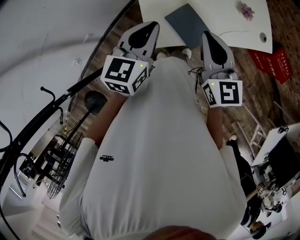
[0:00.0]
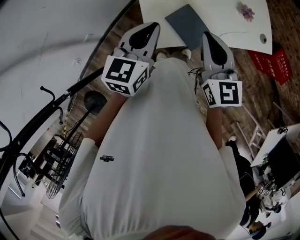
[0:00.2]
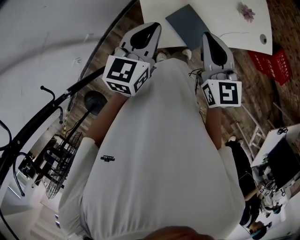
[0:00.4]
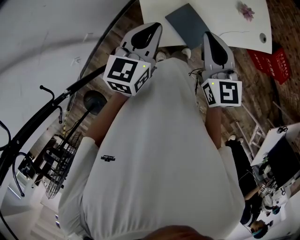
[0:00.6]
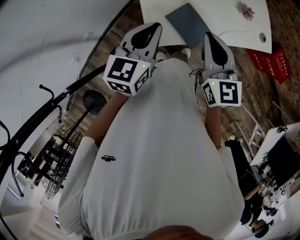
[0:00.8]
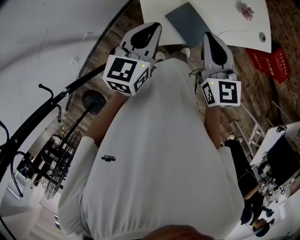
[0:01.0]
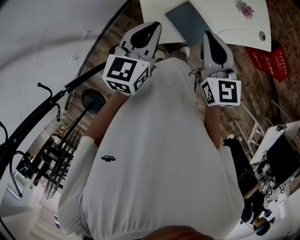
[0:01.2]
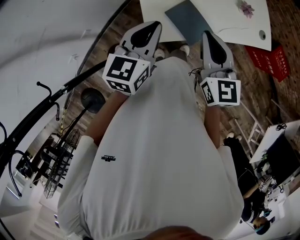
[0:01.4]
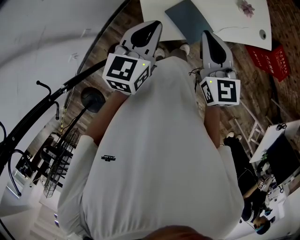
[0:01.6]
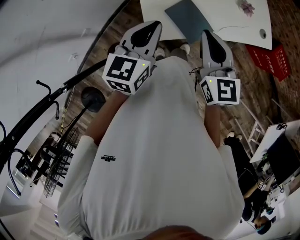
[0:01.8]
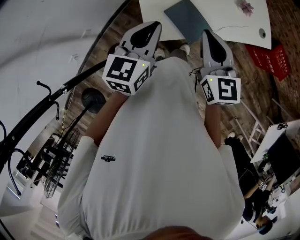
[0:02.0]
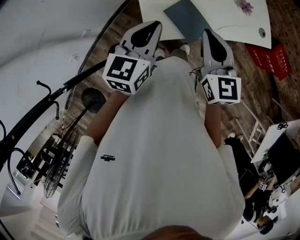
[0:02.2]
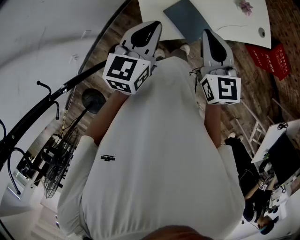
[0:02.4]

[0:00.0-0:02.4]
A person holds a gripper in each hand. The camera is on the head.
0:00.0 to 0:02.4: There are only small adjustments of the grippers.

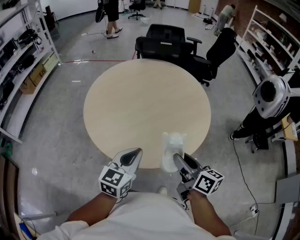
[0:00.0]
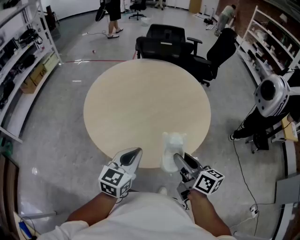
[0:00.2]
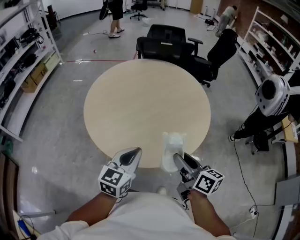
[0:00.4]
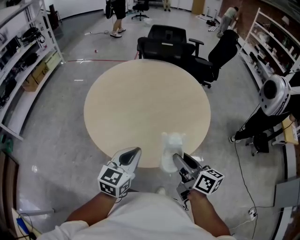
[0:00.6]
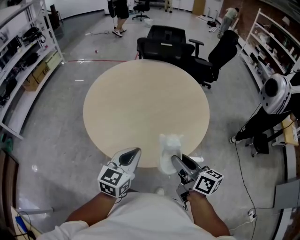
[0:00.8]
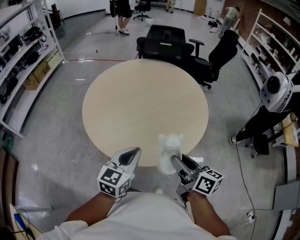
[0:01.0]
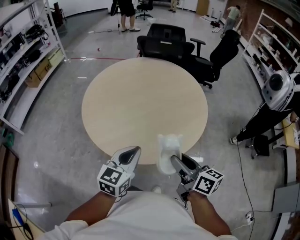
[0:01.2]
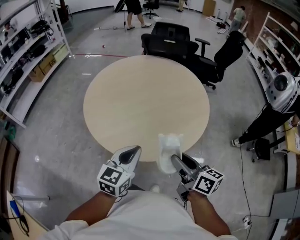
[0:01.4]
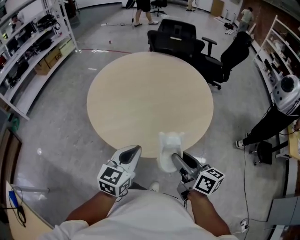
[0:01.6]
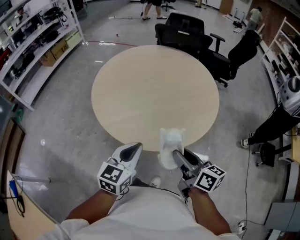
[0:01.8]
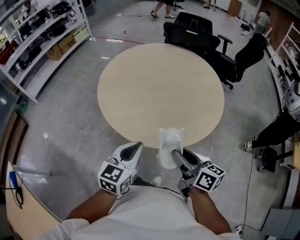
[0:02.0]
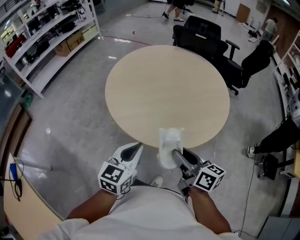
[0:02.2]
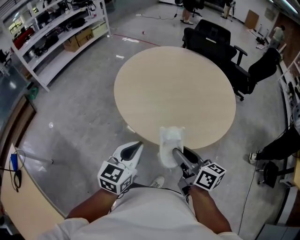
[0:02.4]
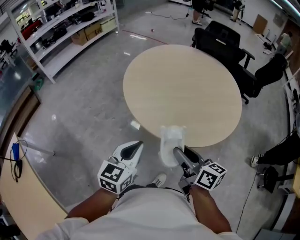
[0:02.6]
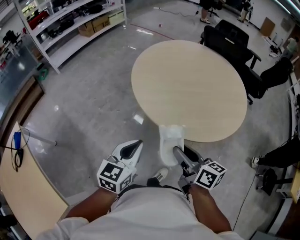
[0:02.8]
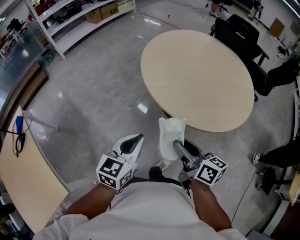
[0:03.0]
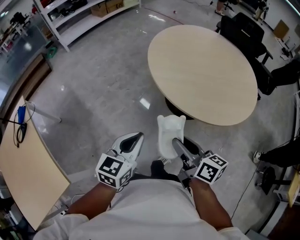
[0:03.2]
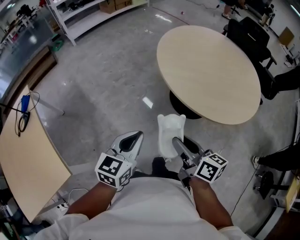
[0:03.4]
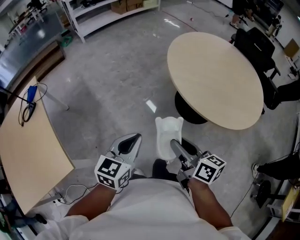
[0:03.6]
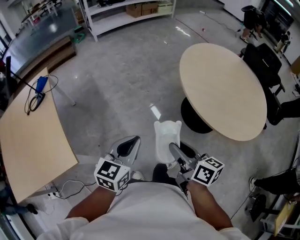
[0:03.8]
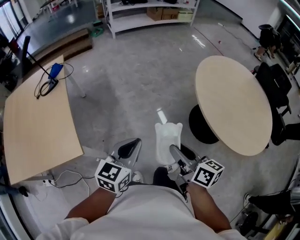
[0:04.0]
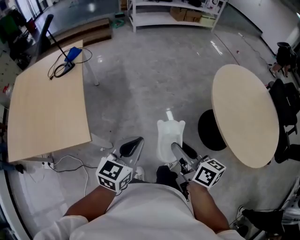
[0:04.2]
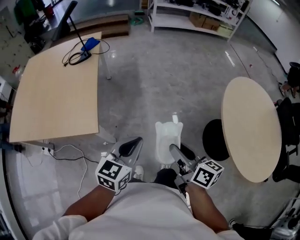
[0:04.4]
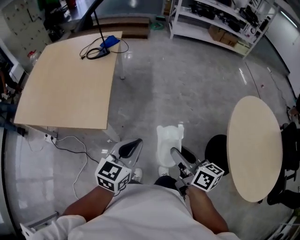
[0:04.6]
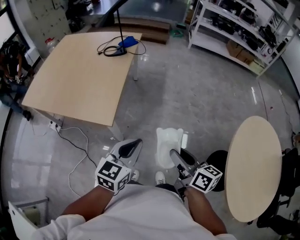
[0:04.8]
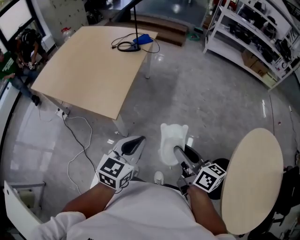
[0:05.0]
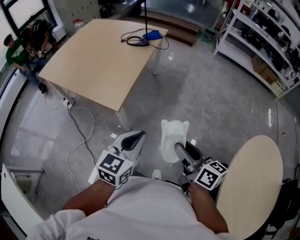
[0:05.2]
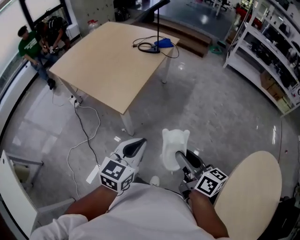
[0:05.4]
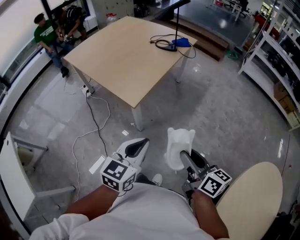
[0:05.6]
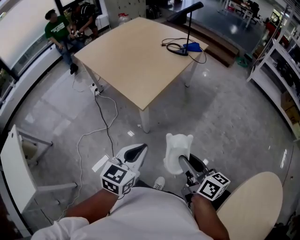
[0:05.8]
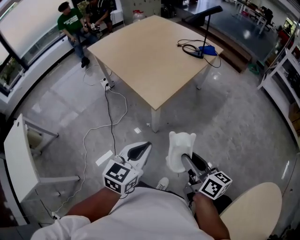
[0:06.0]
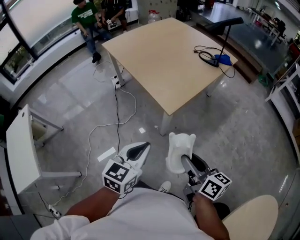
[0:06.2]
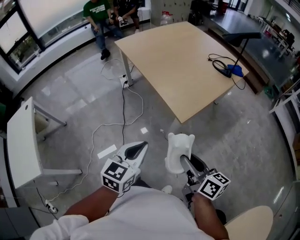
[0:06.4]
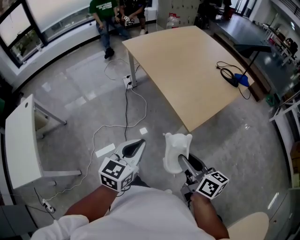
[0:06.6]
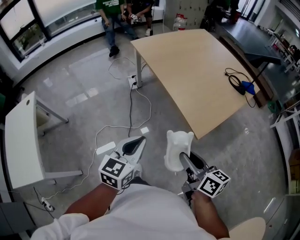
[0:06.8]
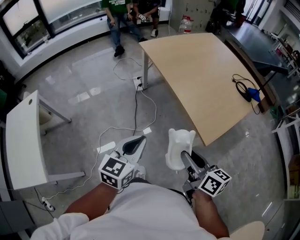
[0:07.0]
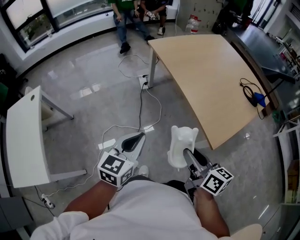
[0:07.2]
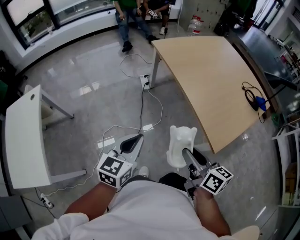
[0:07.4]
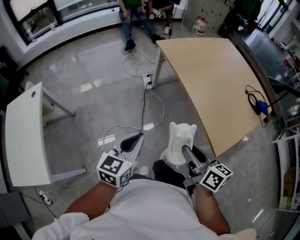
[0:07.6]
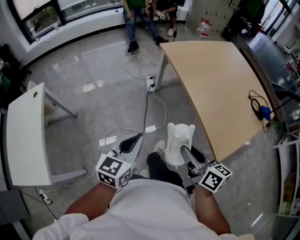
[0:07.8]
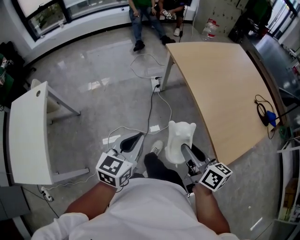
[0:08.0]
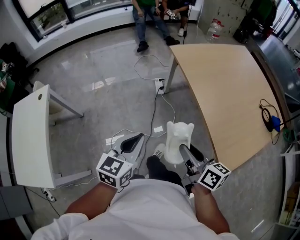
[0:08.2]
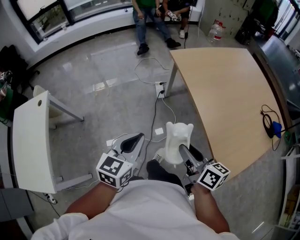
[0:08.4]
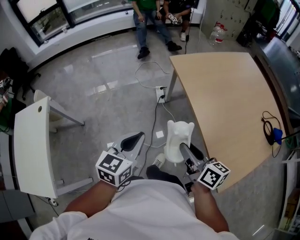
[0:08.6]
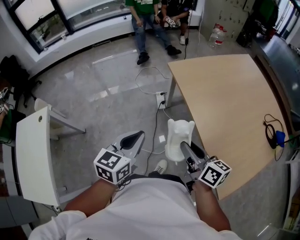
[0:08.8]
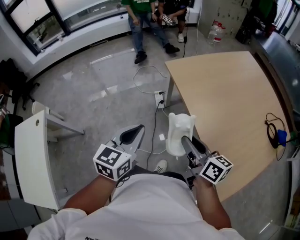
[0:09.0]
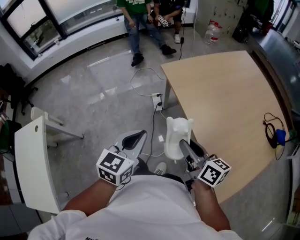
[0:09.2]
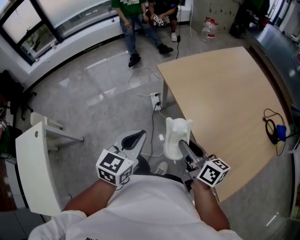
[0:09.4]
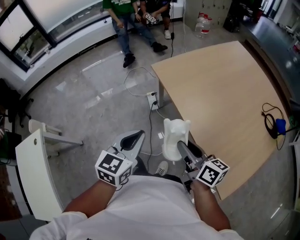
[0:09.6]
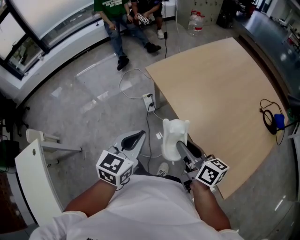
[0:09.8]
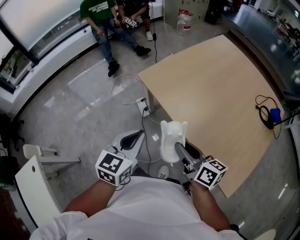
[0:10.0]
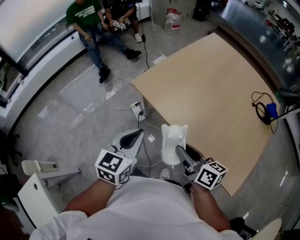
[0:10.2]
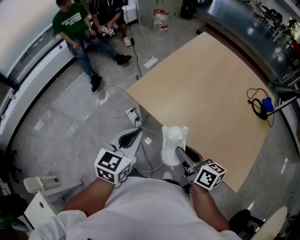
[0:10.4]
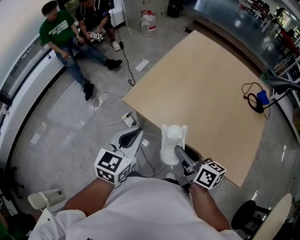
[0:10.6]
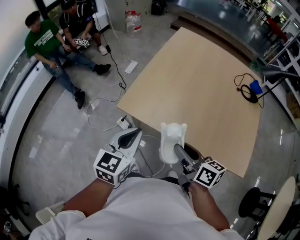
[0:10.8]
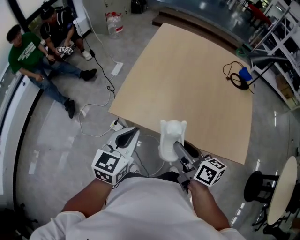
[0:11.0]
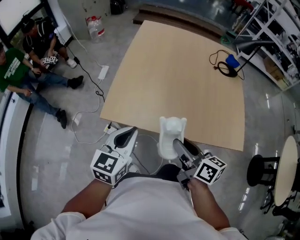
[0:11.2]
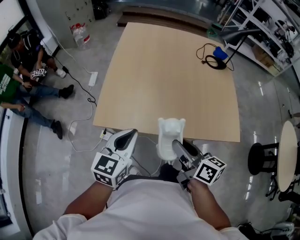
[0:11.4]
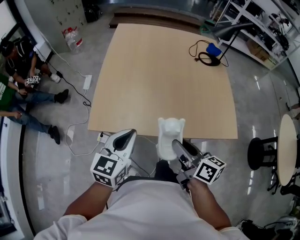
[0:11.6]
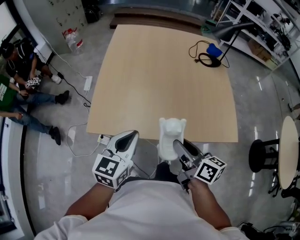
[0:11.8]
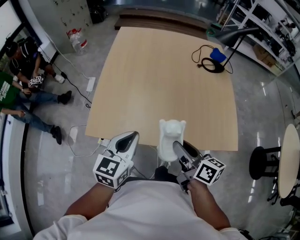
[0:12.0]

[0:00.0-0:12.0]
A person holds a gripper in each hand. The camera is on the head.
0:00.0 to 0:01.6: The grippers both shift to the right by roughly 5 cm.
0:01.6 to 0:03.0: Both grippers move to the left and backward, some 20 cm. The left gripper changes its angle by some 20 degrees. The right gripper changes its angle by about 20 degrees.
0:03.0 to 0:04.4: The left gripper shifts by about 30 cm, and swivels some 40 degrees; the right gripper ends up about 25 cm from where it was, and turns by approximately 40 degrees.
0:04.4 to 0:06.0: The left gripper shifts by approximately 10 cm, and changes its angle by about 50 degrees, while the right gripper ends up about 10 cm from where it was, and swivels approximately 50 degrees.
0:06.0 to 0:07.6: The two grippers travel together, to the left and forward, about 40 cm. The left gripper turns by about 30 degrees; the right gripper turns by some 20 degrees.
0:07.6 to 0:09.0: Both grippers move forward, approximately 25 cm.
0:09.0 to 0:10.4: The left gripper ends up some 20 cm from where it was, and rotates about 30 degrees; the right gripper ends up approximately 10 cm from where it was, and swivels approximately 30 degrees.
0:10.4 to 0:12.0: The right gripper ends up roughly 10 cm from where it was, and rotates about 40 degrees. Meanwhile the left gripper ends up approximately 15 cm from where it was, and turns by roughly 30 degrees.

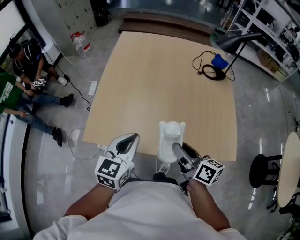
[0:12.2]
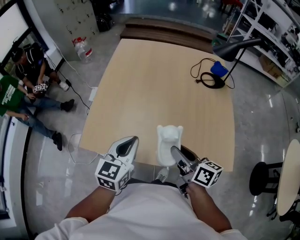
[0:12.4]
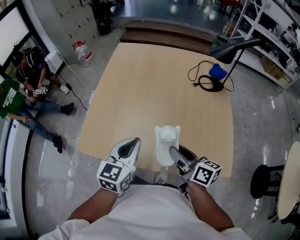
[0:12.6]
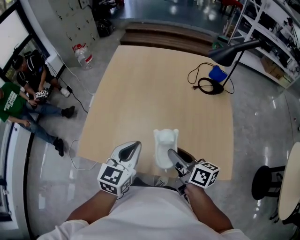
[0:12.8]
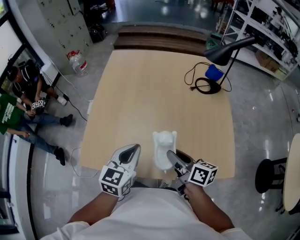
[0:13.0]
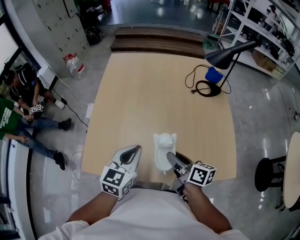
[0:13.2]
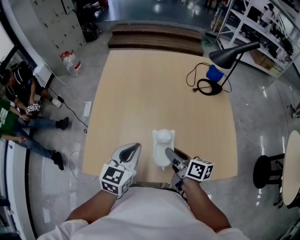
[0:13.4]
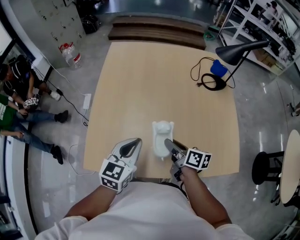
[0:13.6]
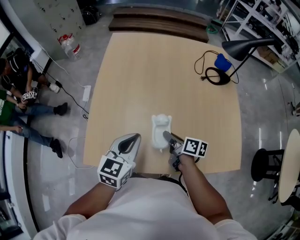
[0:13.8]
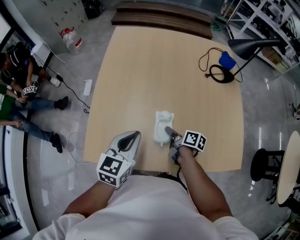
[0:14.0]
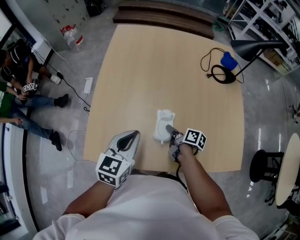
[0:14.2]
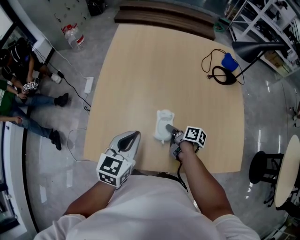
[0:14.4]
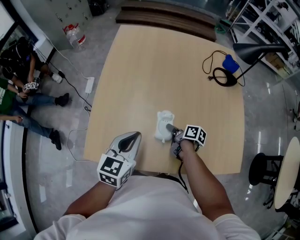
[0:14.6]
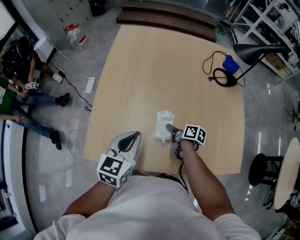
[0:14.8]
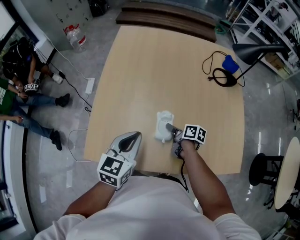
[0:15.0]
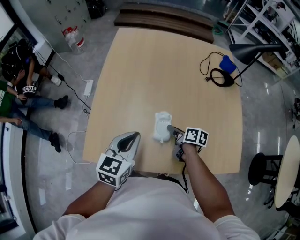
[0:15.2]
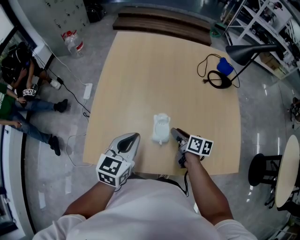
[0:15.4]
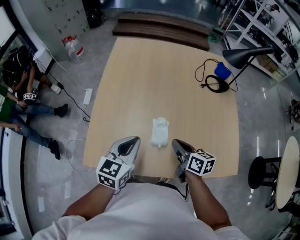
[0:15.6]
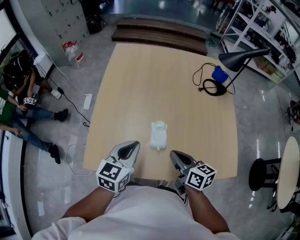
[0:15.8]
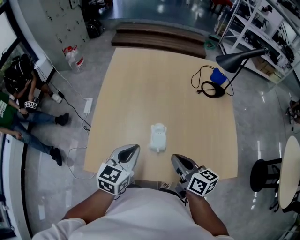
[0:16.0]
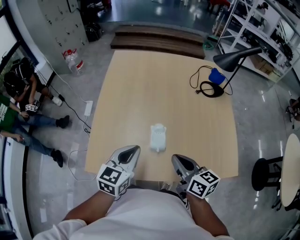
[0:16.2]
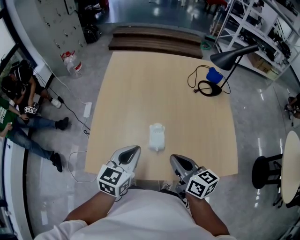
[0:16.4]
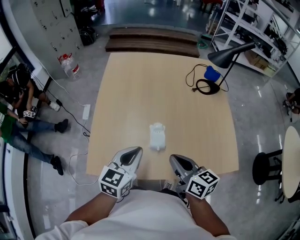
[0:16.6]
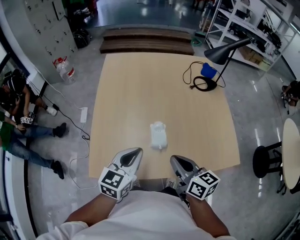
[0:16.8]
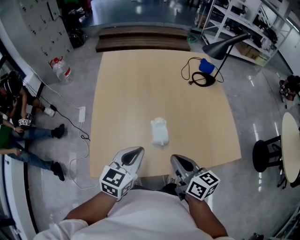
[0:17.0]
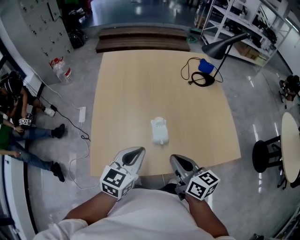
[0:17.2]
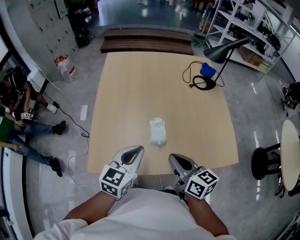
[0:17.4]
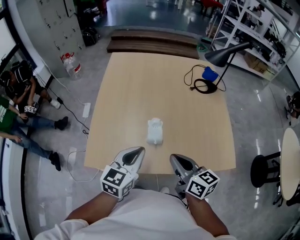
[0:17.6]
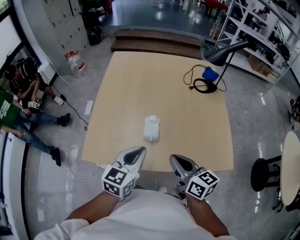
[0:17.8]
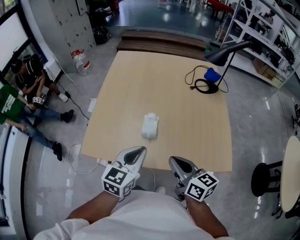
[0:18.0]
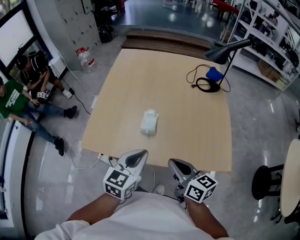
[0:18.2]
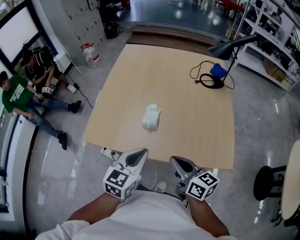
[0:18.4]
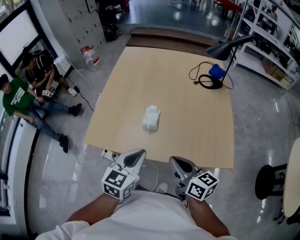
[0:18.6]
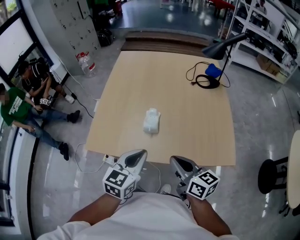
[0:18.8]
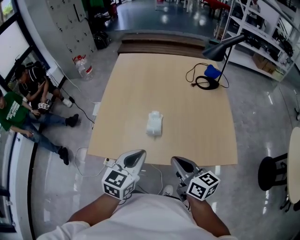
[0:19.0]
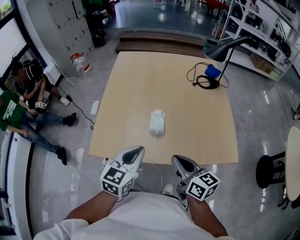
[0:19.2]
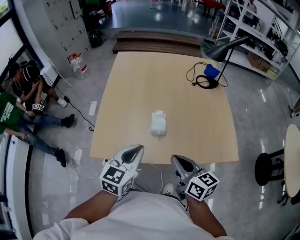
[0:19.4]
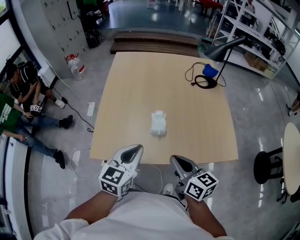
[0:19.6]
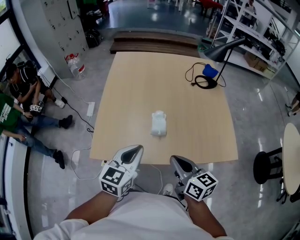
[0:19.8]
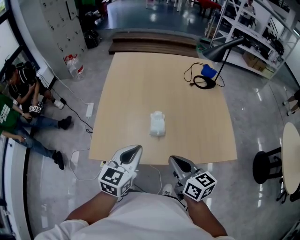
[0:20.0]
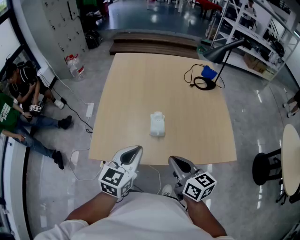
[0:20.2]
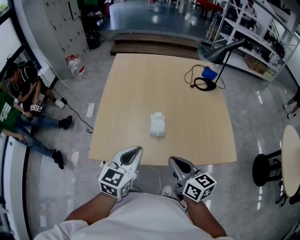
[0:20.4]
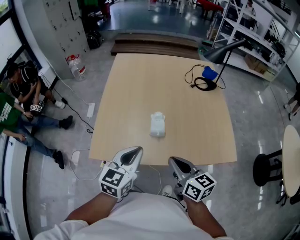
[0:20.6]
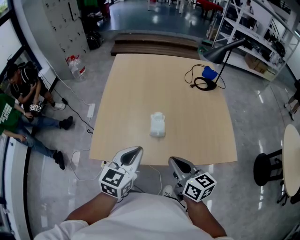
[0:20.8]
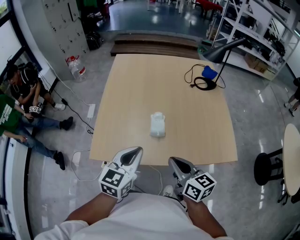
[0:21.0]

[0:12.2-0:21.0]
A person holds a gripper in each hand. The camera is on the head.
0:12.2 to 0:13.6: The left gripper moves forward, some 10 cm, while the right gripper heads forward and downward, covering about 15 cm.
0:13.6 to 0:15.2: The right gripper shifts roughly 10 cm downward.
0:15.2 to 0:16.6: The right gripper shifts some 25 cm upward and backward, changes its angle by roughly 40 degrees, and closes up.
0:16.6 to 0:18.0: The left gripper shifts roughly 10 cm to the right and backward; the right gripper shifts approximately 10 cm backward and to the right.
0:18.0 to 0:19.6: Both grippers move to the left, approximately 5 cm.
0:19.6 to 0:21.0: The two grippers keep their place.
